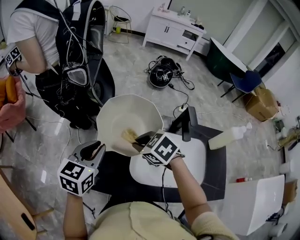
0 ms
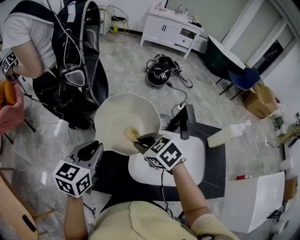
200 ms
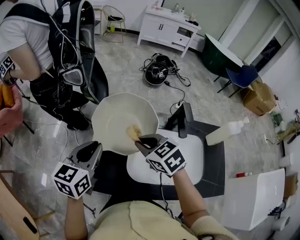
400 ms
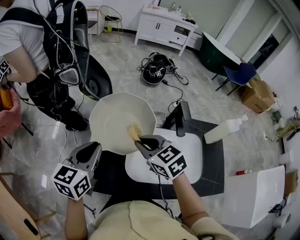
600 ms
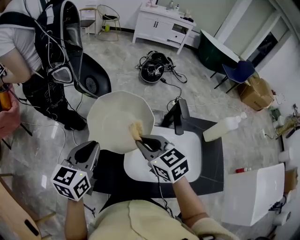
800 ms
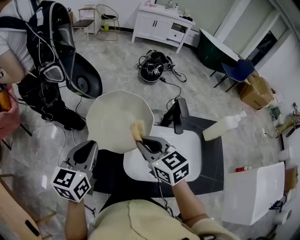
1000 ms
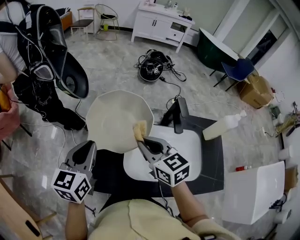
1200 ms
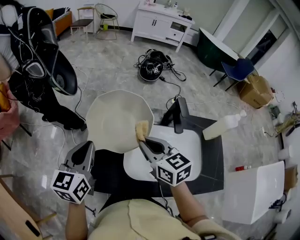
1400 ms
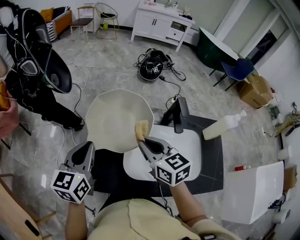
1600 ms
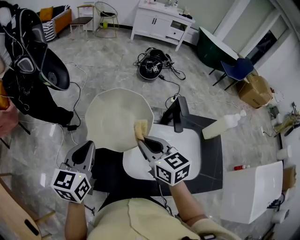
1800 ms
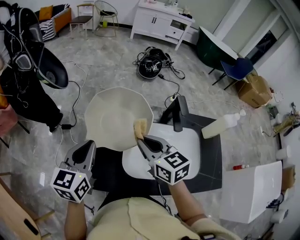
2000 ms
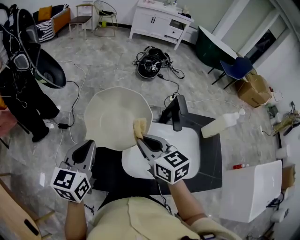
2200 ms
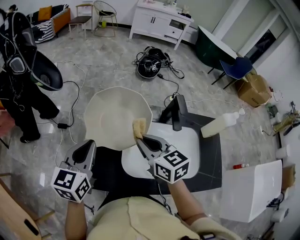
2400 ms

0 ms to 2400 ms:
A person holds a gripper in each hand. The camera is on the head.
0 ms to 1200 ms: The right gripper is displaced upward and to the right by approximately 10 cm, and tips its fingers upward by roughly 30 degrees.
1200 ms to 2400 ms: The grippers stay close to where they were, moving slightly.

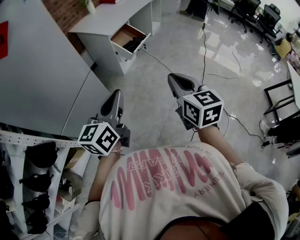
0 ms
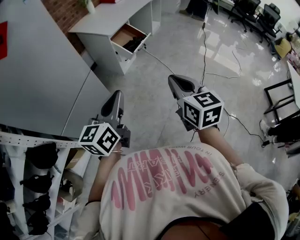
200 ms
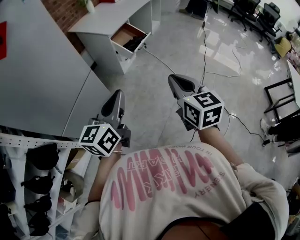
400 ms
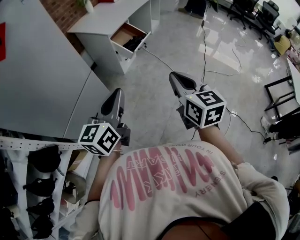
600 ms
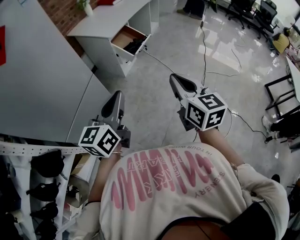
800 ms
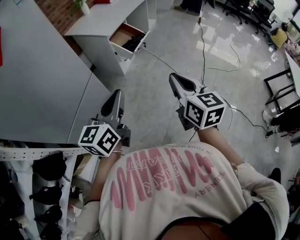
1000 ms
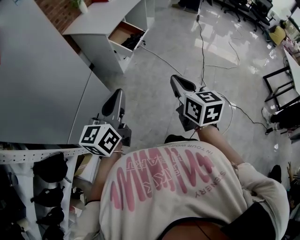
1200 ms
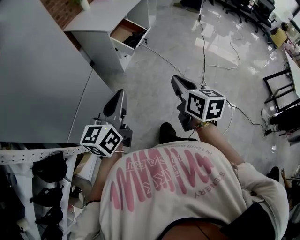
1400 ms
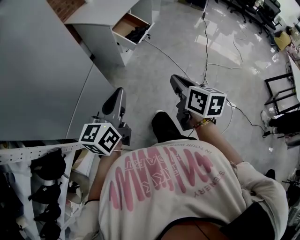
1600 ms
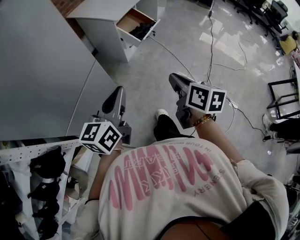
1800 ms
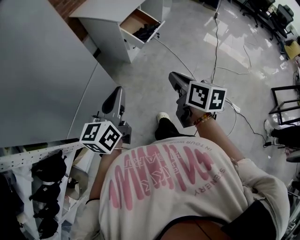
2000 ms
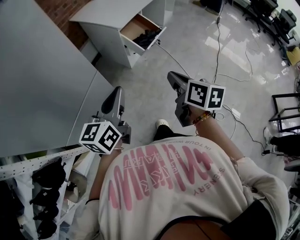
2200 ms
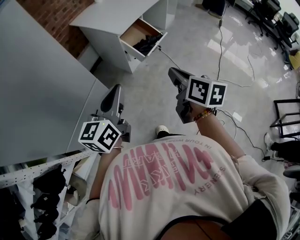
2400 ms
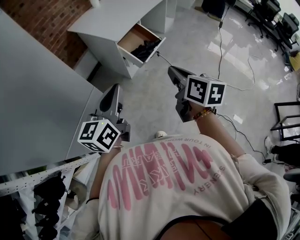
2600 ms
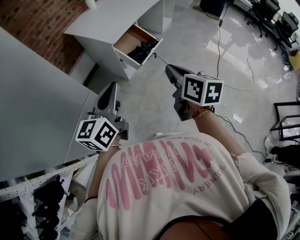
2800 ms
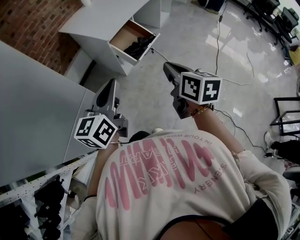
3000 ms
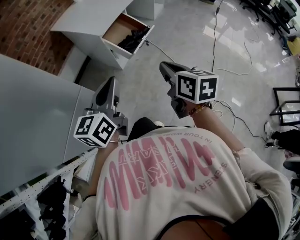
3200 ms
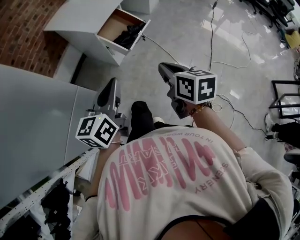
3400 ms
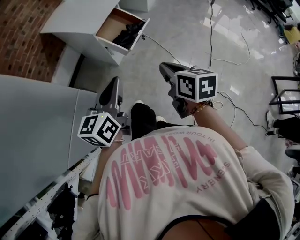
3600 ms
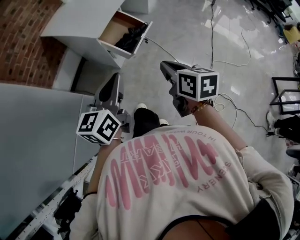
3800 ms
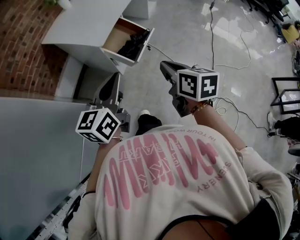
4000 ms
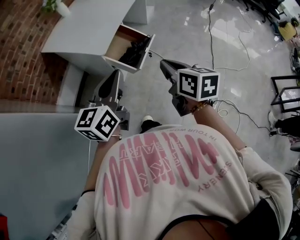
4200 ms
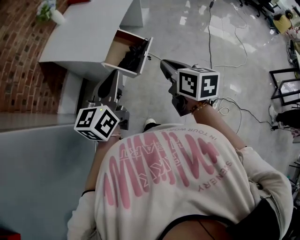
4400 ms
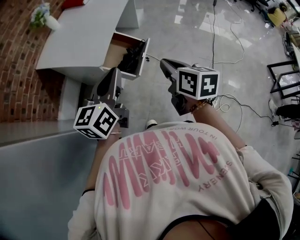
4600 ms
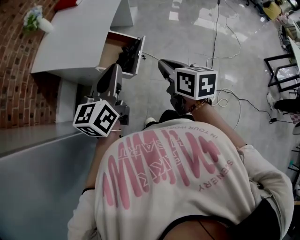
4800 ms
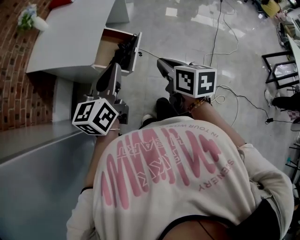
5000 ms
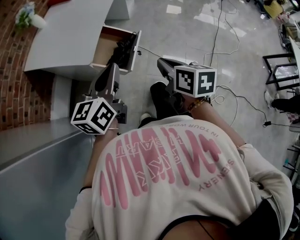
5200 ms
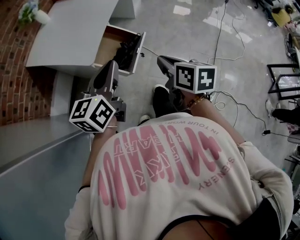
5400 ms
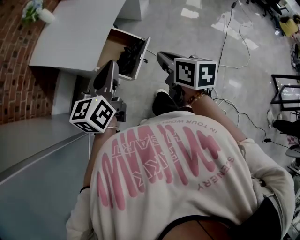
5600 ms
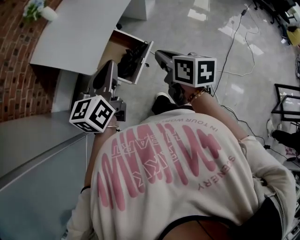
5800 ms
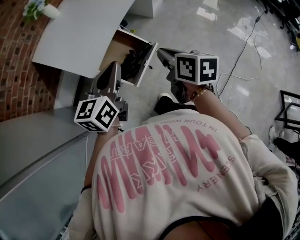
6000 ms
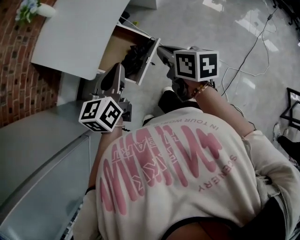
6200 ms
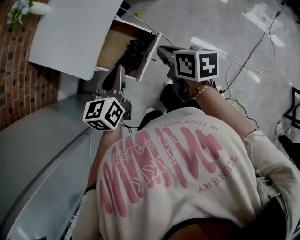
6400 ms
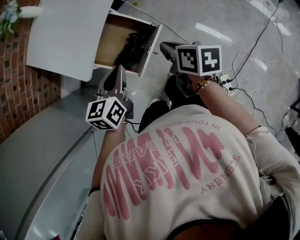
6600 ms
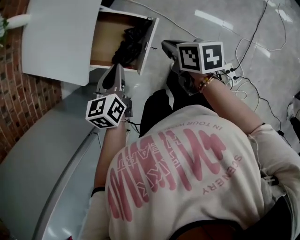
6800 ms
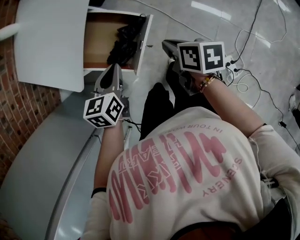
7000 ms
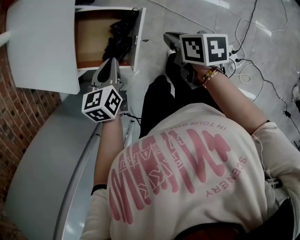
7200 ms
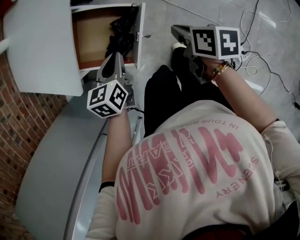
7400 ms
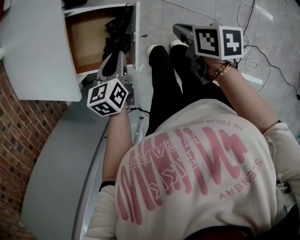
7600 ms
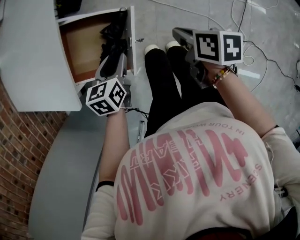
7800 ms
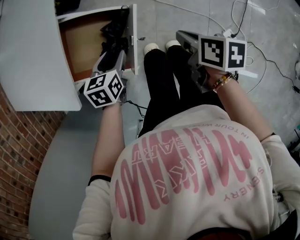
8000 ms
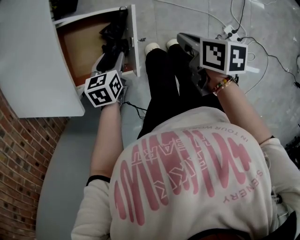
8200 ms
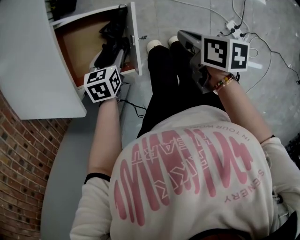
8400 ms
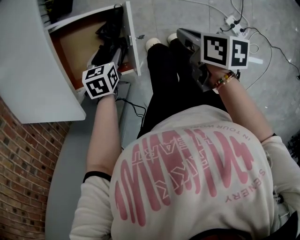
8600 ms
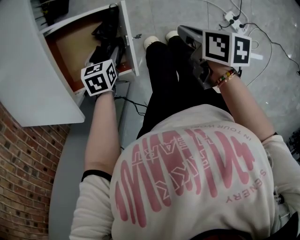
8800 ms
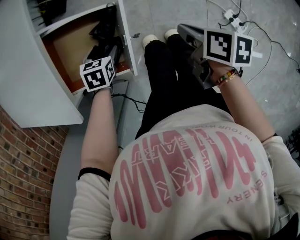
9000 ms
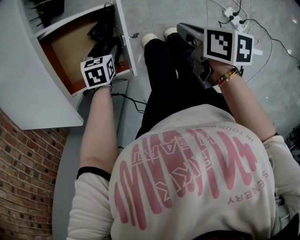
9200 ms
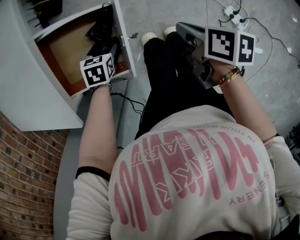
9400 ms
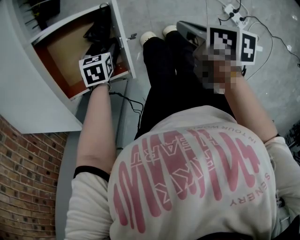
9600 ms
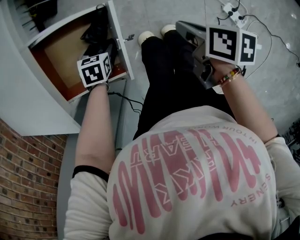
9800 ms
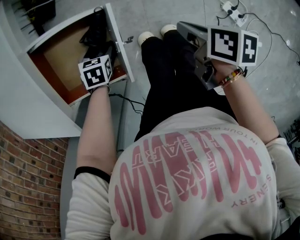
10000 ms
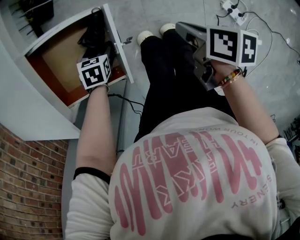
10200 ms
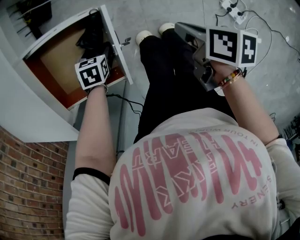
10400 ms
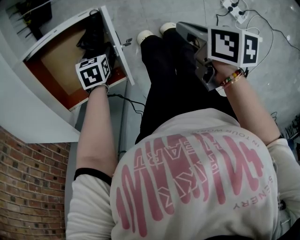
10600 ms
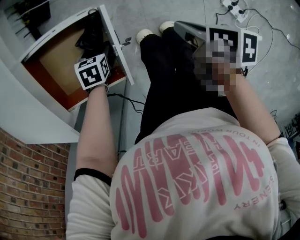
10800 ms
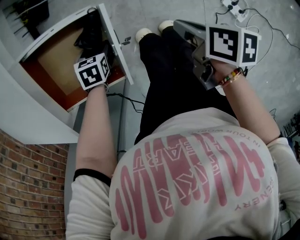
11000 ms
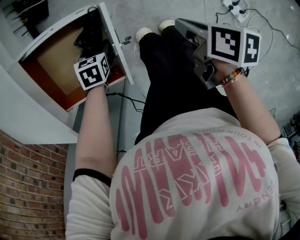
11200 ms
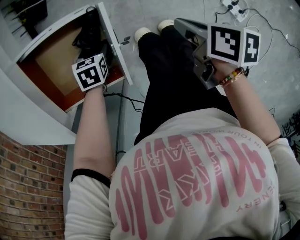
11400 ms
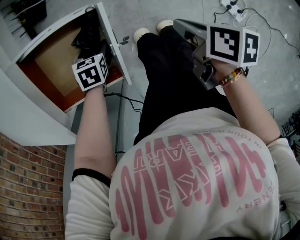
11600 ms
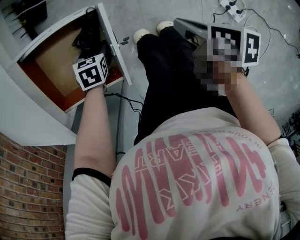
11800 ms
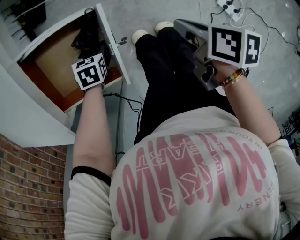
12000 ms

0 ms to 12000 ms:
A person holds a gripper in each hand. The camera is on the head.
0 ms to 1600 ms: The right gripper goes approximately 10 cm downward and to the left, and rotates roughly 30 degrees, while the left gripper shifts about 10 cm to the left.
1600 ms to 3000 ms: Both grippers move forward, approximately 25 cm.
3000 ms to 4400 ms: The two grippers go about 15 cm forward.
4400 ms to 6000 ms: The two grippers go some 20 cm forward.
6000 ms to 7600 ms: The right gripper heads downward and to the right, covering about 25 cm, and changes its angle by about 30 degrees; the left gripper moves downward, about 30 cm, and tilts its fingers some 40 degrees downward.
7600 ms to 9000 ms: The left gripper goes about 15 cm downward, changes its angle by some 30 degrees, and opens its fingers. The right gripper shifts by some 5 cm.
9000 ms to 10400 ms: The left gripper travels downward by some 5 cm.
10400 ms to 12000 ms: The two grippers keep their place.

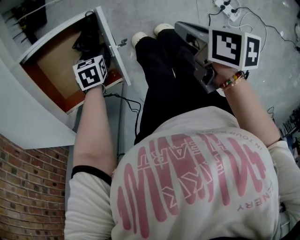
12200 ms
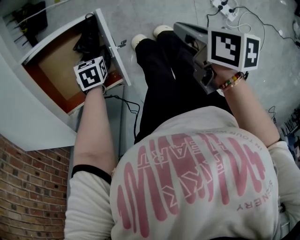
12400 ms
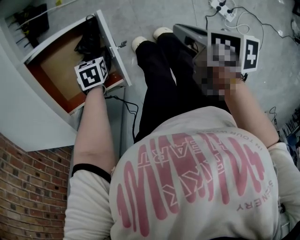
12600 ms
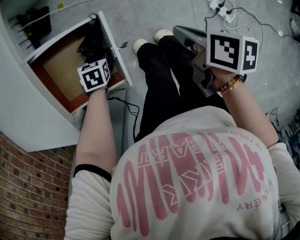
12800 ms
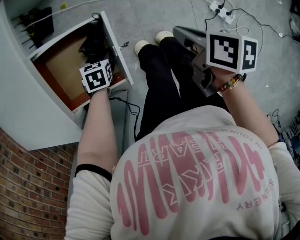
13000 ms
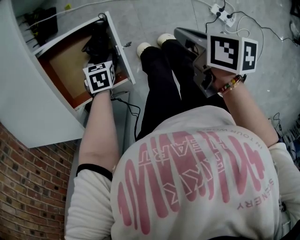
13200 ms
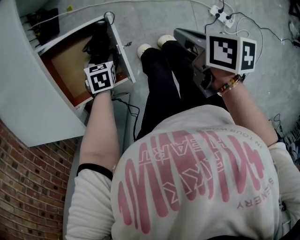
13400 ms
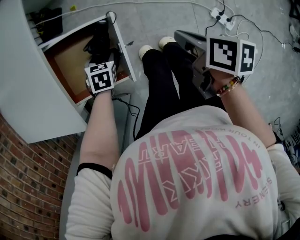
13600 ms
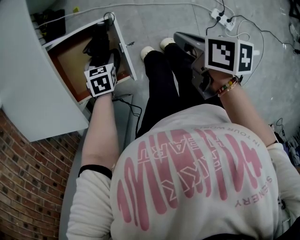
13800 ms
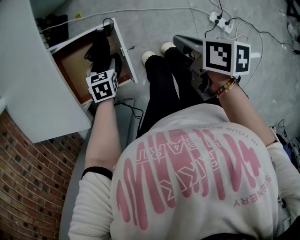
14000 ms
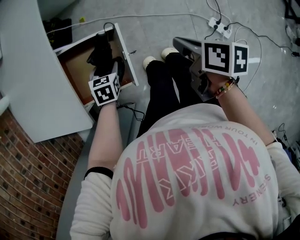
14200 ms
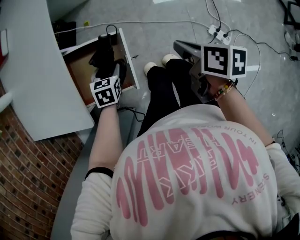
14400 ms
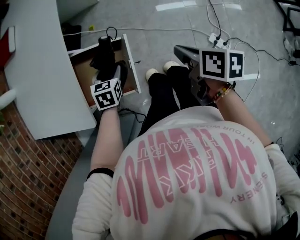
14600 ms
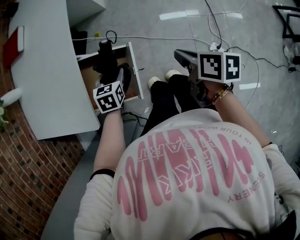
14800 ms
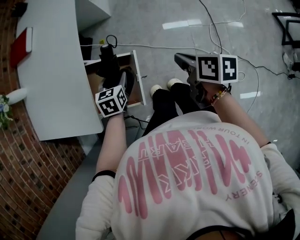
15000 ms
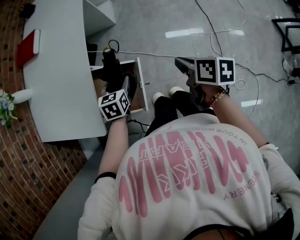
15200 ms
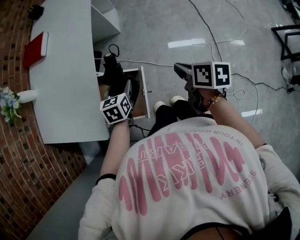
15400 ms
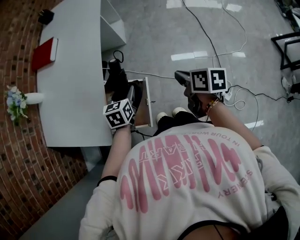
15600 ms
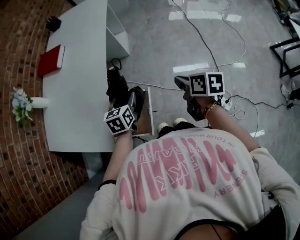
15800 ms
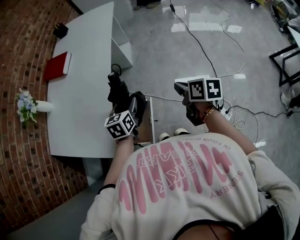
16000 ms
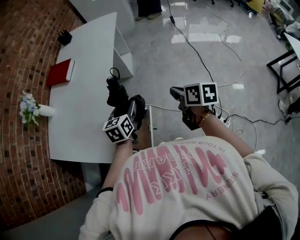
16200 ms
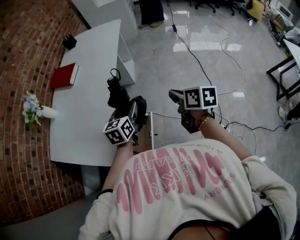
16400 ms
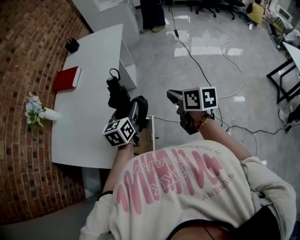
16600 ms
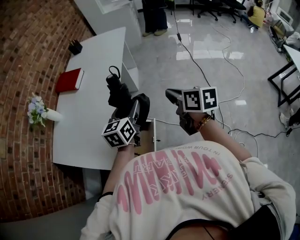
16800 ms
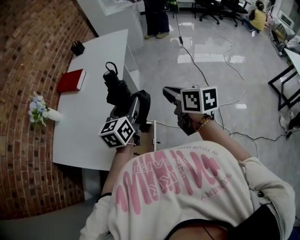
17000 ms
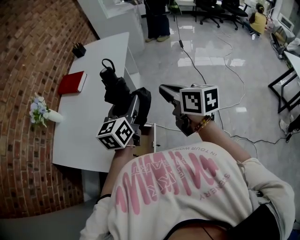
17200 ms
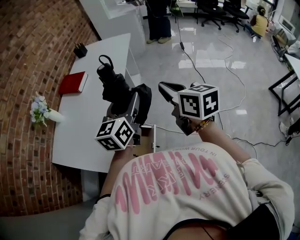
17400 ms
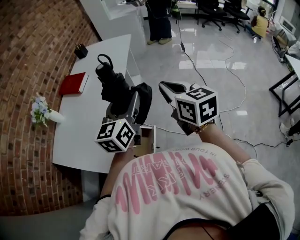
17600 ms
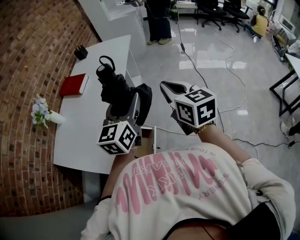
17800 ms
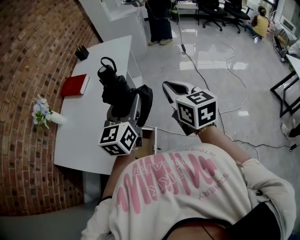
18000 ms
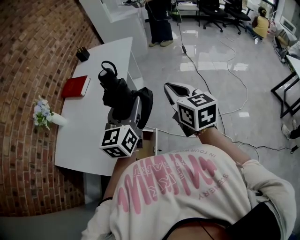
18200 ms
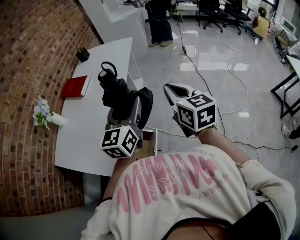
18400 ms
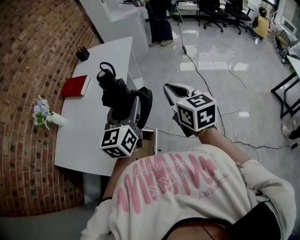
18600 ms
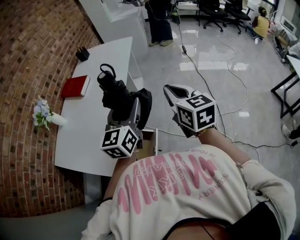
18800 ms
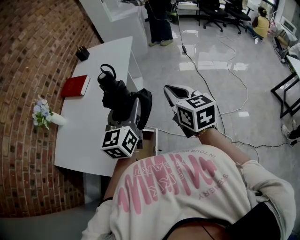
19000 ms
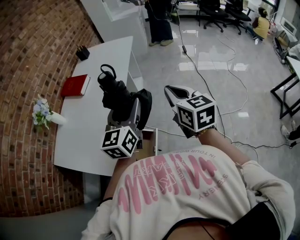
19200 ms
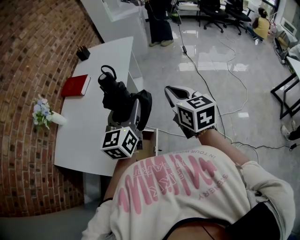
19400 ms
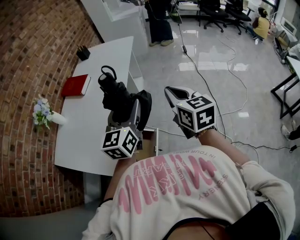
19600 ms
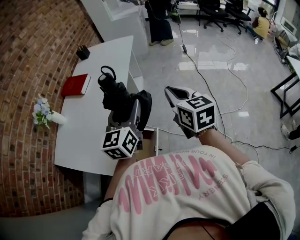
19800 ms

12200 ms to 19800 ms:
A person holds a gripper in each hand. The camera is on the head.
12200 ms to 13800 ms: The grippers both shift upward by some 10 cm.
13800 ms to 15200 ms: The left gripper goes approximately 15 cm upward, and turns by about 30 degrees; the right gripper moves upward and forward, roughly 15 cm.
15200 ms to 16800 ms: Both grippers travel together upward, approximately 20 cm. The left gripper angles its fingers upward, by some 30 degrees; the right gripper swivels approximately 20 degrees.
16800 ms to 18200 ms: Both grippers travel together upward, approximately 10 cm. The right gripper changes its angle by approximately 30 degrees.
18200 ms to 19800 ms: There are only small adjustments of the grippers.

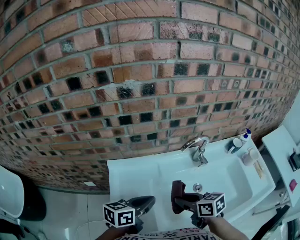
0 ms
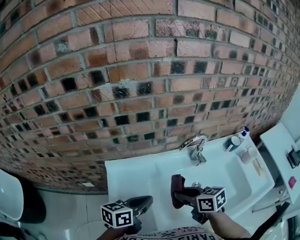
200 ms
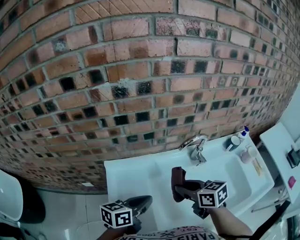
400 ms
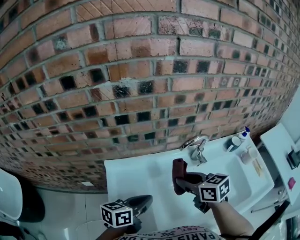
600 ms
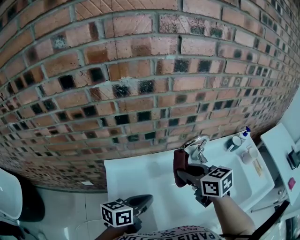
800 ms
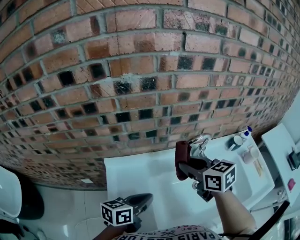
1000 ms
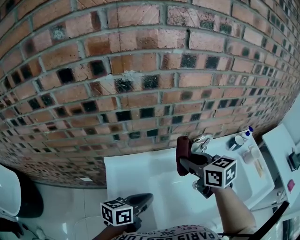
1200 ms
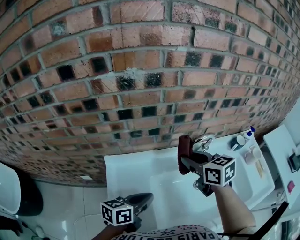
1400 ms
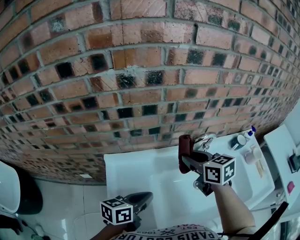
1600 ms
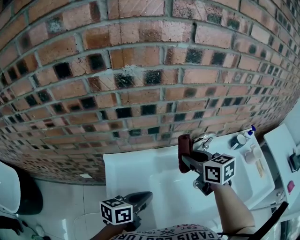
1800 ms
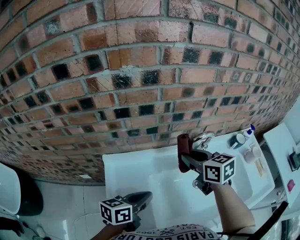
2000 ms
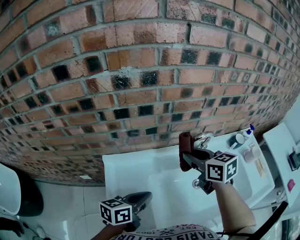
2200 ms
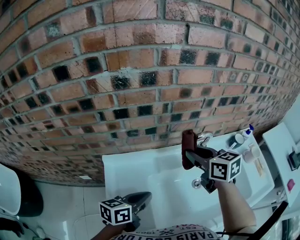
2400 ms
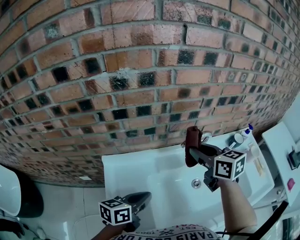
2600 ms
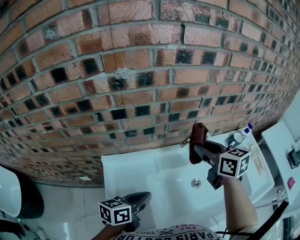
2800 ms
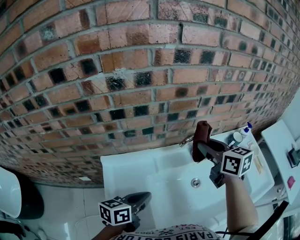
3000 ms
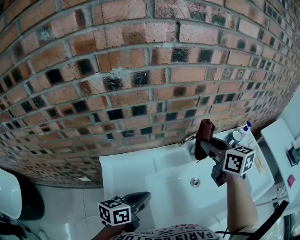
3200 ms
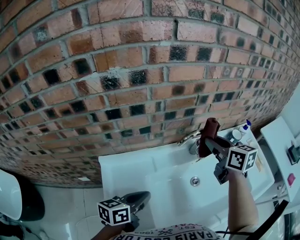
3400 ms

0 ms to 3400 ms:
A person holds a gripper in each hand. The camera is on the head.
0 ms to 1600 ms: The right gripper is displaced forward and upward by approximately 20 cm.
1600 ms to 3400 ms: The right gripper heads to the right and upward, covering about 15 cm.
